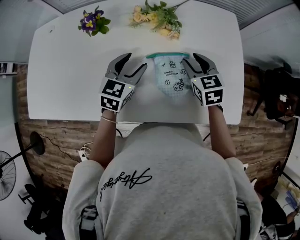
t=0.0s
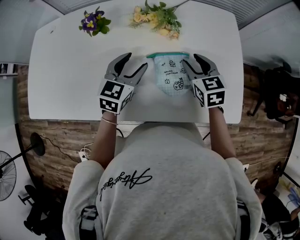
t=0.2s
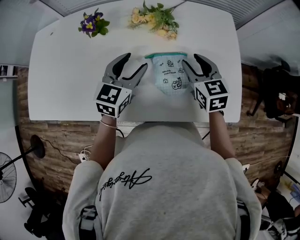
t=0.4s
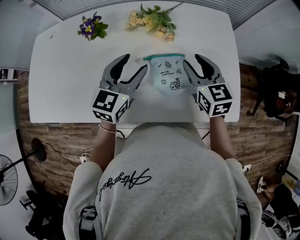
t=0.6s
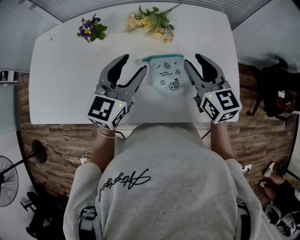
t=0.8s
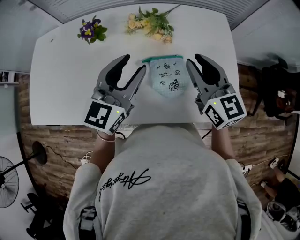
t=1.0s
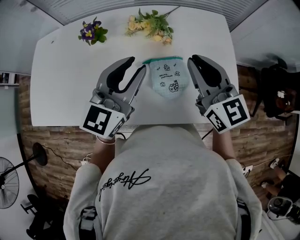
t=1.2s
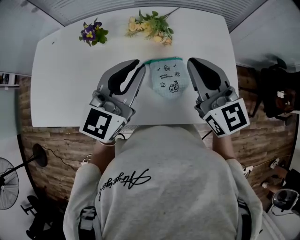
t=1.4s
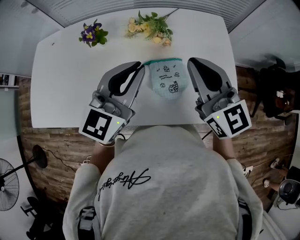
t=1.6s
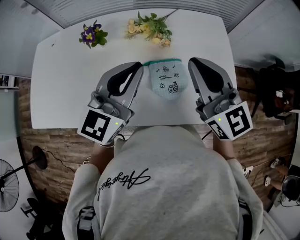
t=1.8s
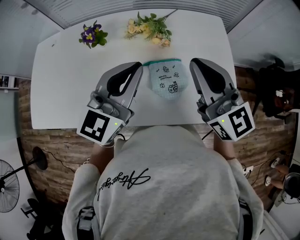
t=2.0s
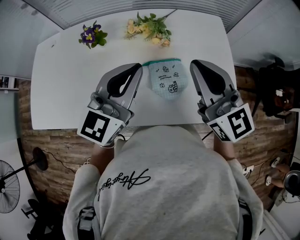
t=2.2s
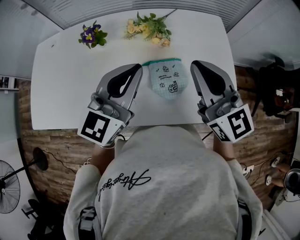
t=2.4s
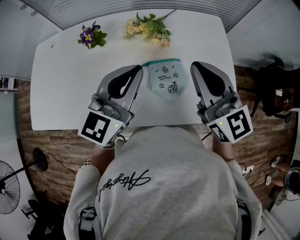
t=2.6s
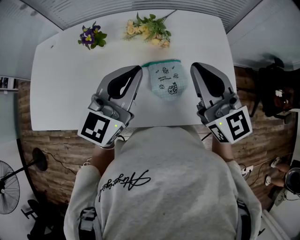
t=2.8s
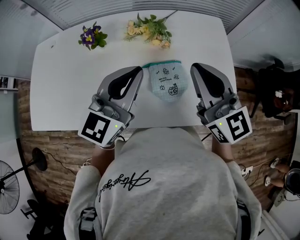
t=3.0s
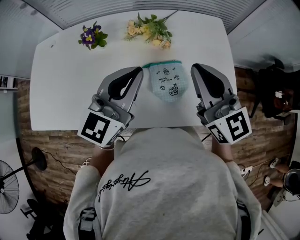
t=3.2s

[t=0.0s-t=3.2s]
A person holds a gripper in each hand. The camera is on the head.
t=0.0s to t=1.6s: Both grippers move upward, roughly 20 cm. The left gripper rotates some 30 degrees, and closes its fingers, while the right gripper points its fingers approximately 40 degrees further upward, and closes.
t=1.6s to t=3.2s: The grippers make only small movements.

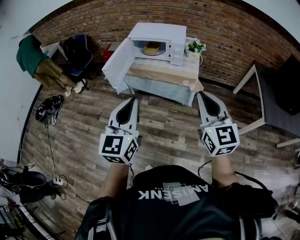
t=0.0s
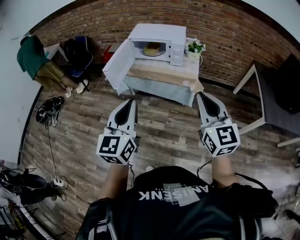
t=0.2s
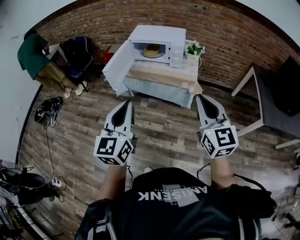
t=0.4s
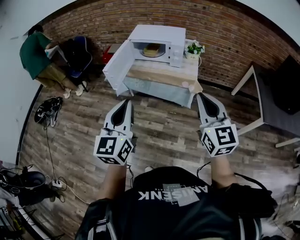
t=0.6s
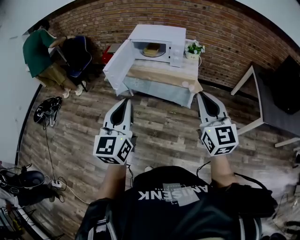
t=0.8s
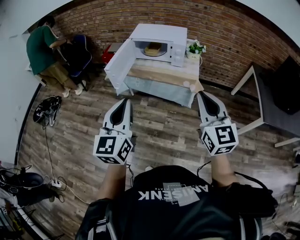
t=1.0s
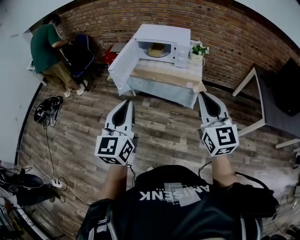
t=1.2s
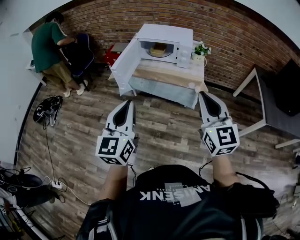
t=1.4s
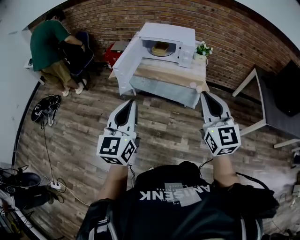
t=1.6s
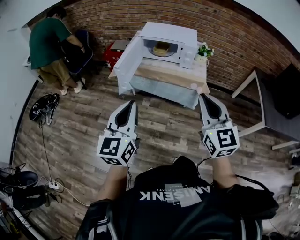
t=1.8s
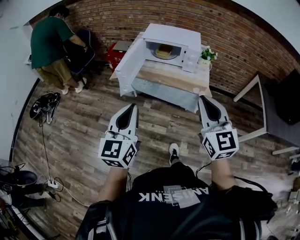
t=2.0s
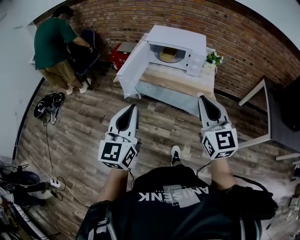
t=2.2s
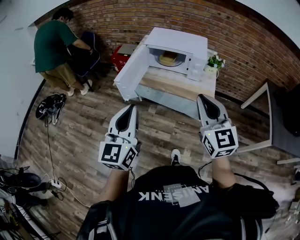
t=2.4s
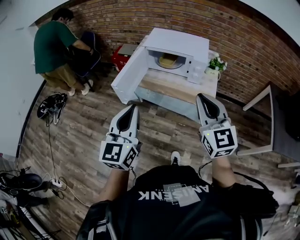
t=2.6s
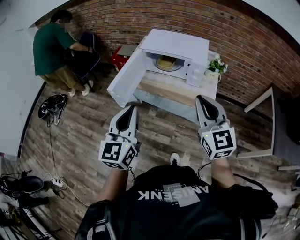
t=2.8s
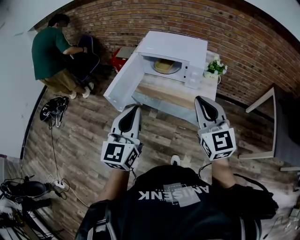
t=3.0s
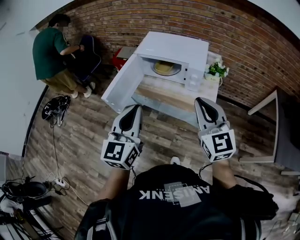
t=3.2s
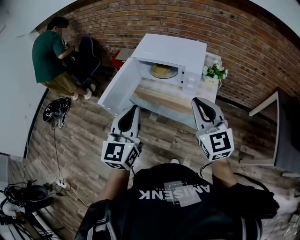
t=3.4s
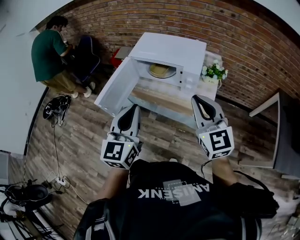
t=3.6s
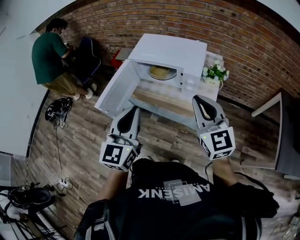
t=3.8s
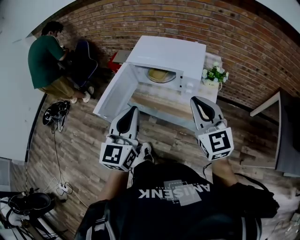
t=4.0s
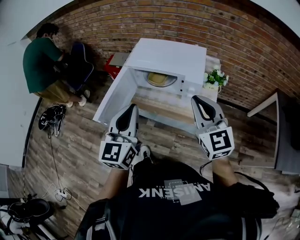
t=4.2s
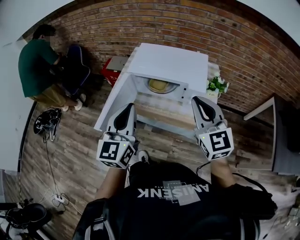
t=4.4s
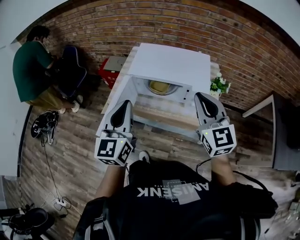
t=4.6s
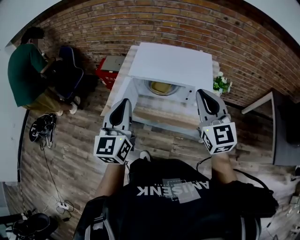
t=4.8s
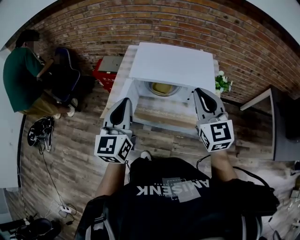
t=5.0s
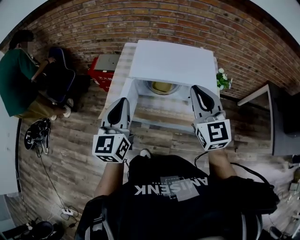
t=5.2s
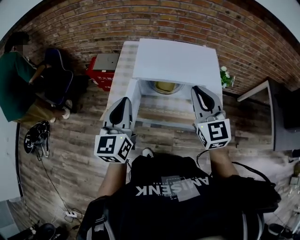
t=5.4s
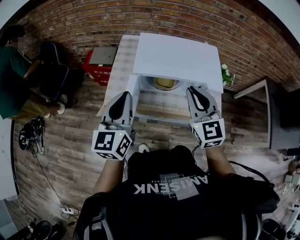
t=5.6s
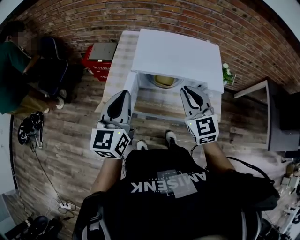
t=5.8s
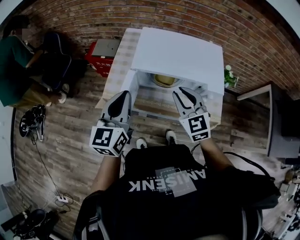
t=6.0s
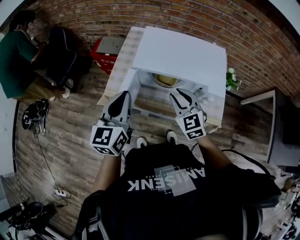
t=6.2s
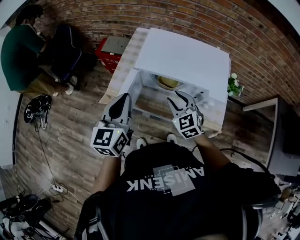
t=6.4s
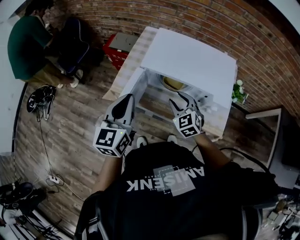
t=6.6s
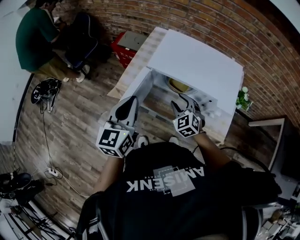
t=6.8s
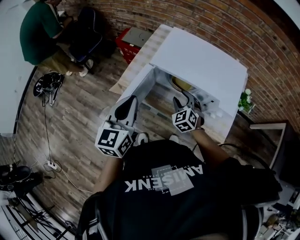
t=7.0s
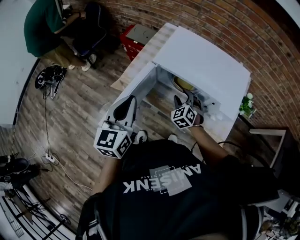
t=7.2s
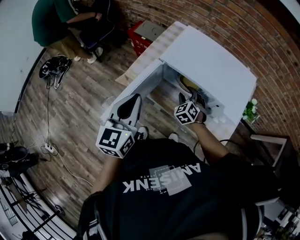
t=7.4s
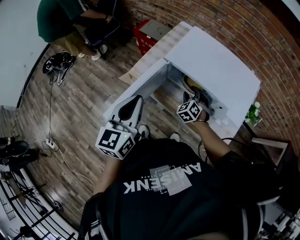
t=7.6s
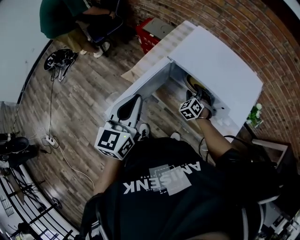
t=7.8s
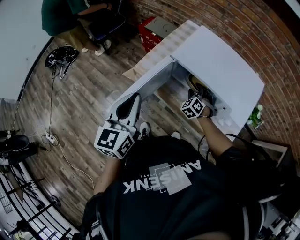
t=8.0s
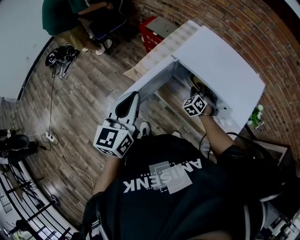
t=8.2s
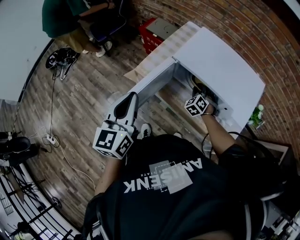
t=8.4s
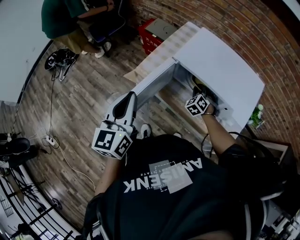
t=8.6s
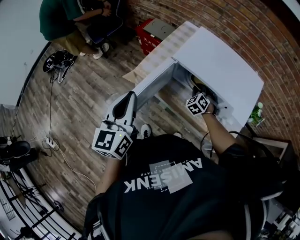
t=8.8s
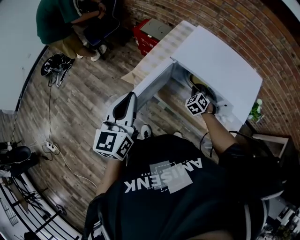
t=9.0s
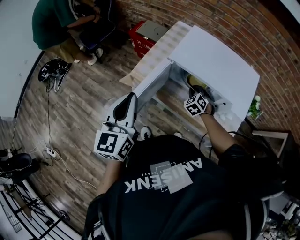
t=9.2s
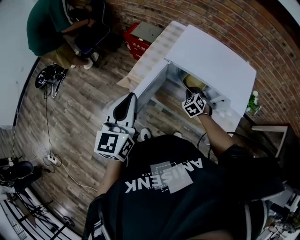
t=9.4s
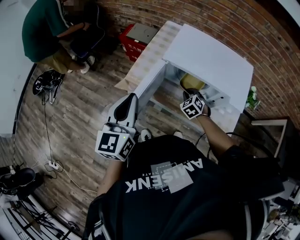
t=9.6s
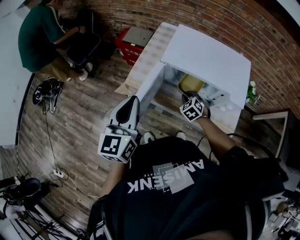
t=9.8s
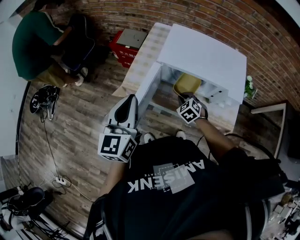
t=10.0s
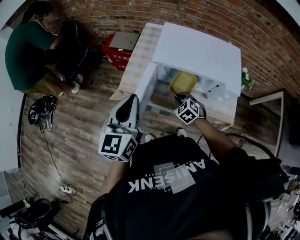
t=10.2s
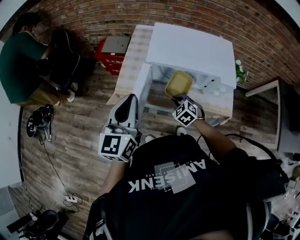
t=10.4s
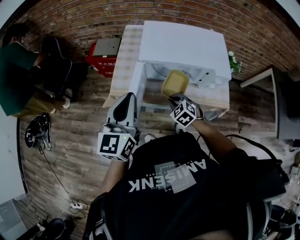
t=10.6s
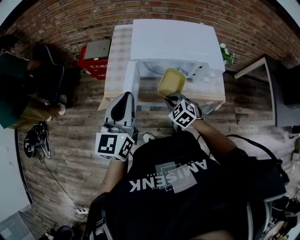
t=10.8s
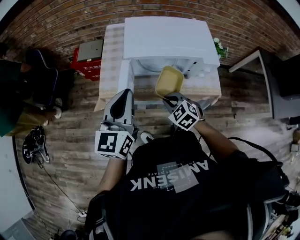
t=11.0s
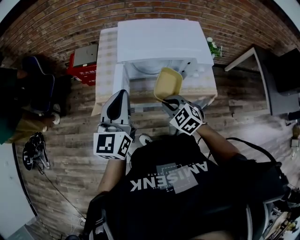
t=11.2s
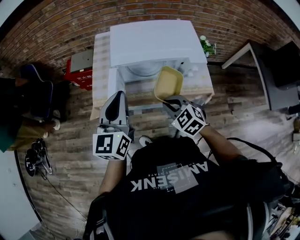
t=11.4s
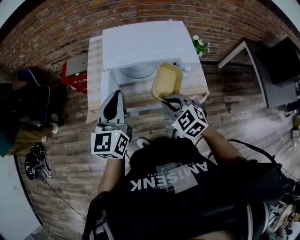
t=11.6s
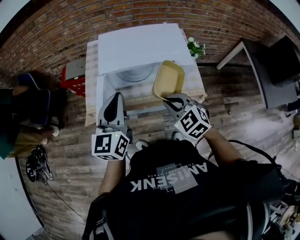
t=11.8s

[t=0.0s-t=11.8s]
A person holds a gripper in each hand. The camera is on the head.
t=0.0s to t=1.4s: Both grippers move to the left, about 10 cm.
t=1.4s to t=3.0s: Both grippers travel together forward, about 25 cm.
t=3.0s to t=4.4s: The two grippers go about 20 cm forward.
t=4.4s to t=6.0s: Both grippers travel together forward, to the left and downward, approximately 25 cm.
t=6.0s to t=7.4s: The left gripper is displaced backward by about 5 cm. Meanwhile the right gripper shifts roughly 20 cm downward, swivels about 30 degrees, and opens its fingers.
t=7.4s to t=8.8s: The right gripper closes up. The left gripper moves to the left, some 5 cm.
t=8.8s to t=10.4s: The left gripper swivels approximately 20 degrees; the right gripper travels backward and to the left by approximately 15 cm, and rotates some 20 degrees.
t=10.4s to t=11.8s: The right gripper moves upward, to the right and backward, some 25 cm. The left gripper moves to the right, roughly 10 cm.

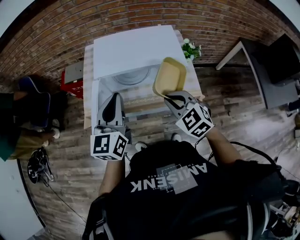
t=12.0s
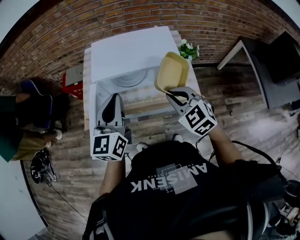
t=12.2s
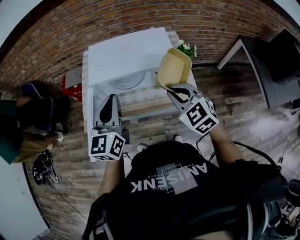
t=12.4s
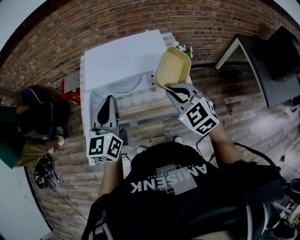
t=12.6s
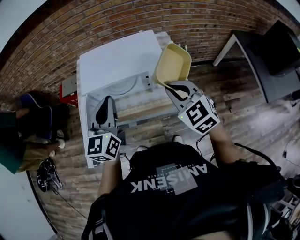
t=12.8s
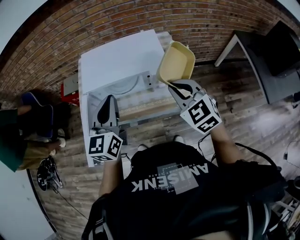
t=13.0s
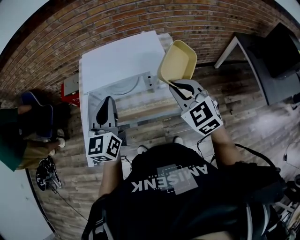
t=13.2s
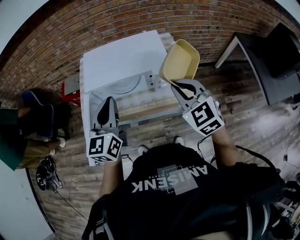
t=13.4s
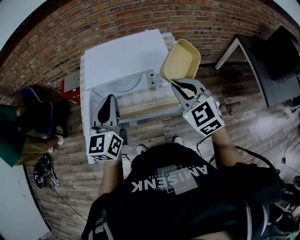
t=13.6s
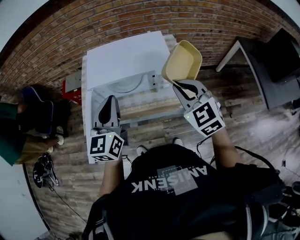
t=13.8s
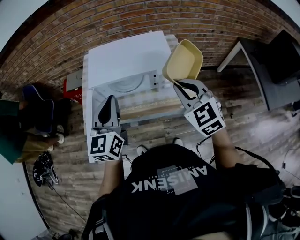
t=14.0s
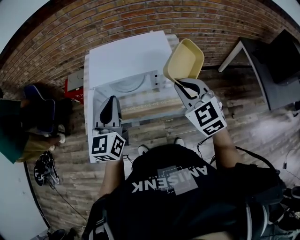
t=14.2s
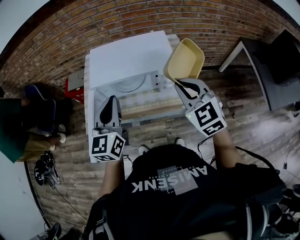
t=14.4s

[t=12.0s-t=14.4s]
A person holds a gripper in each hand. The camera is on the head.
t=12.0s to t=13.2s: The right gripper goes roughly 15 cm to the right and upward, while the left gripper moves to the right, about 5 cm.
t=13.2s to t=14.4s: There are only small adjustments of the grippers.

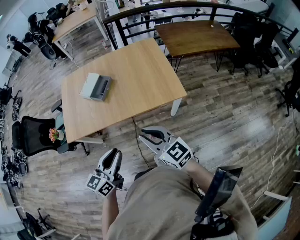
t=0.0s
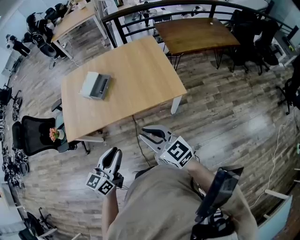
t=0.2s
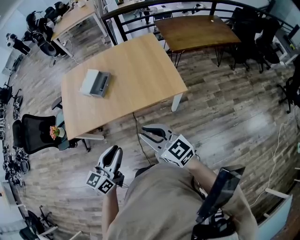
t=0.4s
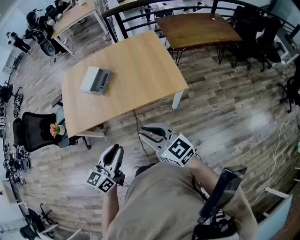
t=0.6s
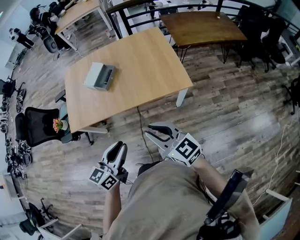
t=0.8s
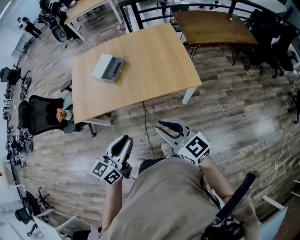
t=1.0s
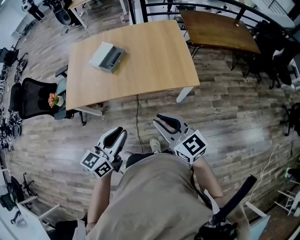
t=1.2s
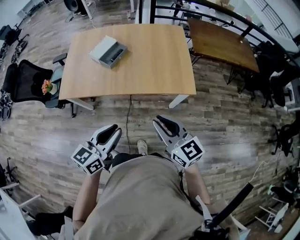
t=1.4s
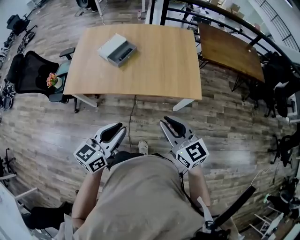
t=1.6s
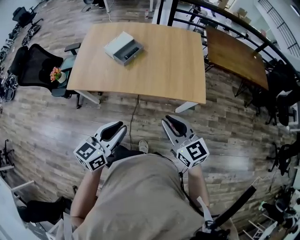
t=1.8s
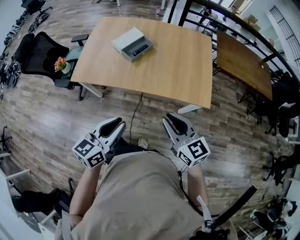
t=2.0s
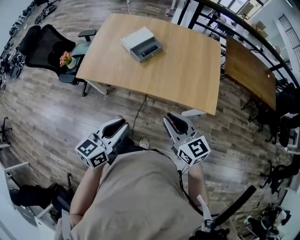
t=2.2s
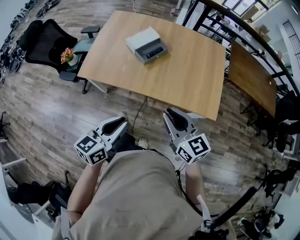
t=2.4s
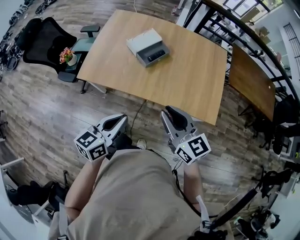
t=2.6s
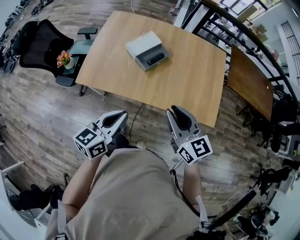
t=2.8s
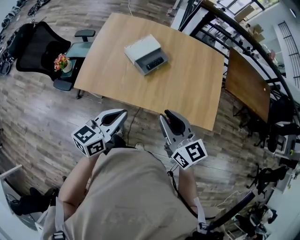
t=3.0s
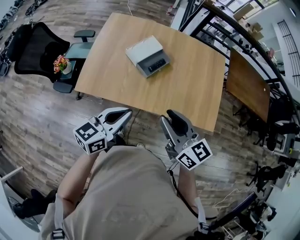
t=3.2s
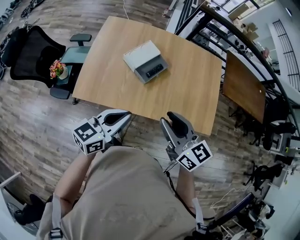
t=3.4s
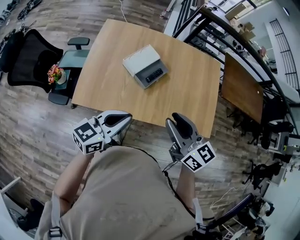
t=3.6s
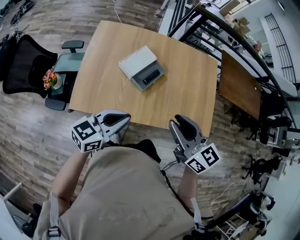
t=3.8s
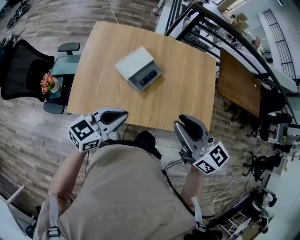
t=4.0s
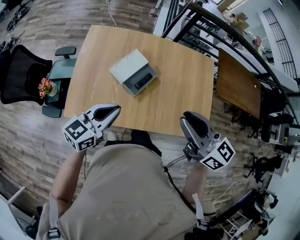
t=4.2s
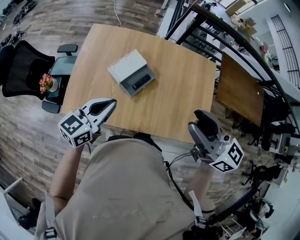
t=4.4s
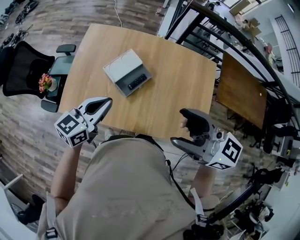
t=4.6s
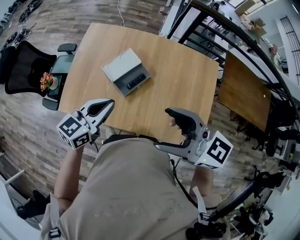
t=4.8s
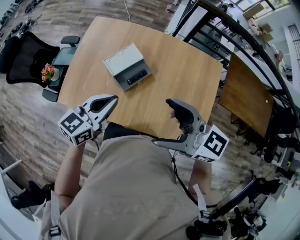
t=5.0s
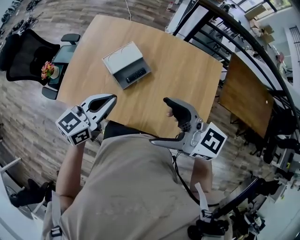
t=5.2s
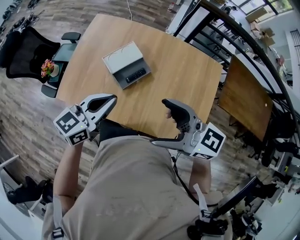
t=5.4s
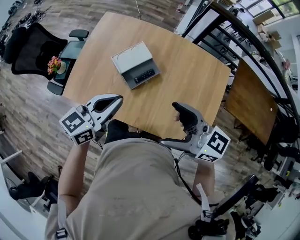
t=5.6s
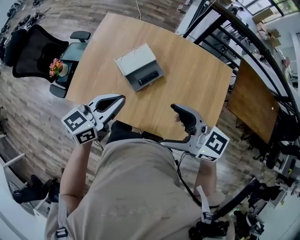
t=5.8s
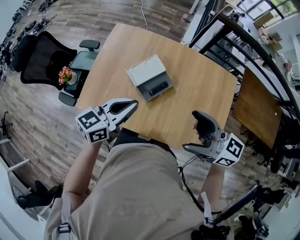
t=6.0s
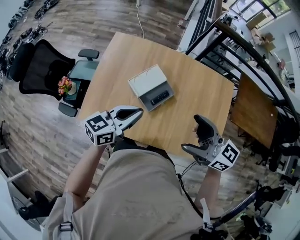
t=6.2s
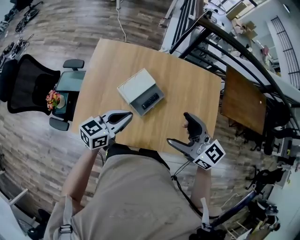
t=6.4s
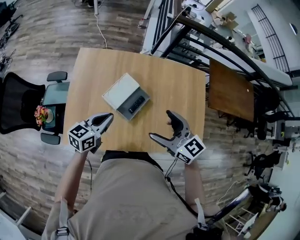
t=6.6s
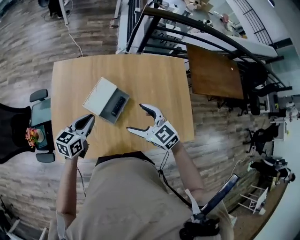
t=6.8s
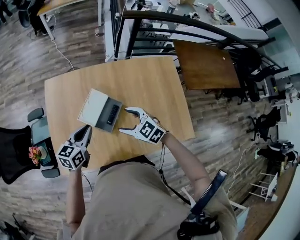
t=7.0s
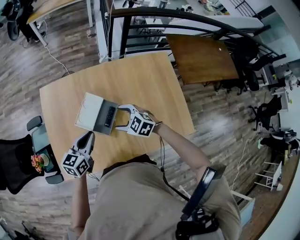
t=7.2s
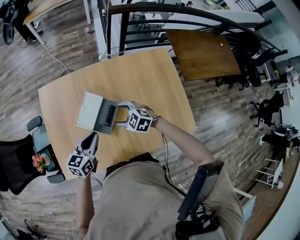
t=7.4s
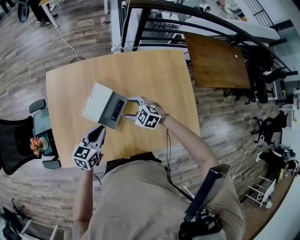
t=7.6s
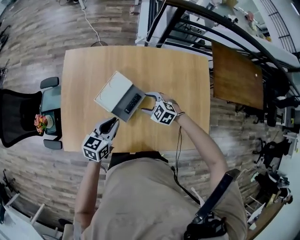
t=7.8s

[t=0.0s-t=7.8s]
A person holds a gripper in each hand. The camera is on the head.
t=0.0s to t=1.6s: The grippers stay close to where they were, moving slightly.
t=1.6s to t=3.2s: The grippers both shift forward and to the left by roughly 30 cm.
t=3.2s to t=4.6s: The left gripper is displaced forward by some 20 cm, while the right gripper is displaced forward, upward and to the right by roughly 20 cm, turns by some 20 degrees, and opens its fingers.
t=4.6s to t=6.2s: The right gripper goes about 10 cm downward and forward, and opens its fingers, while the left gripper reaches about 5 cm to the right, then returns.
t=6.2s to t=7.8s: The right gripper heads downward and forward, covering about 35 cm, and angles its fingers downward, by approximately 50 degrees. Meanwhile the left gripper is displaced downward and forward by about 15 cm.
